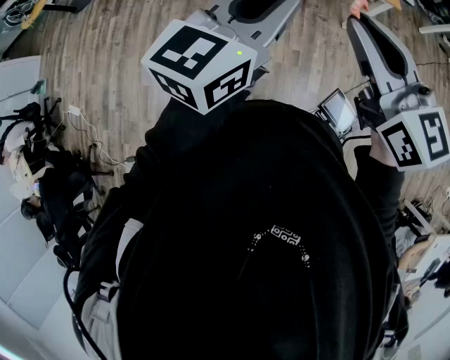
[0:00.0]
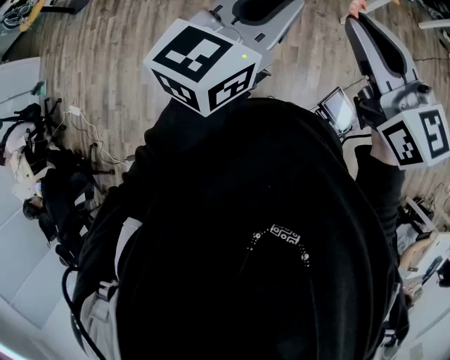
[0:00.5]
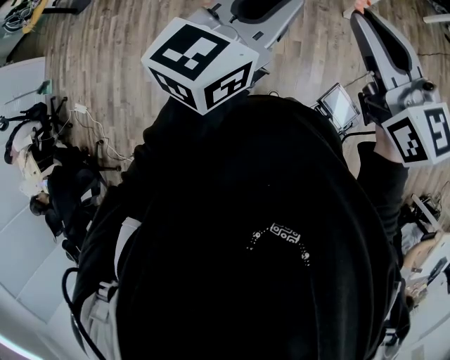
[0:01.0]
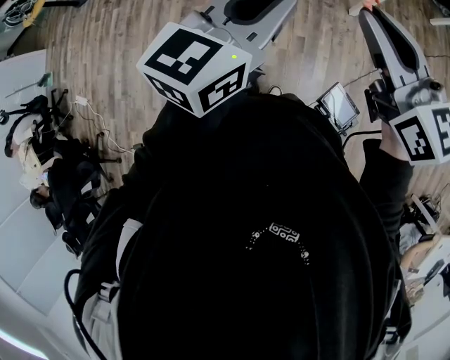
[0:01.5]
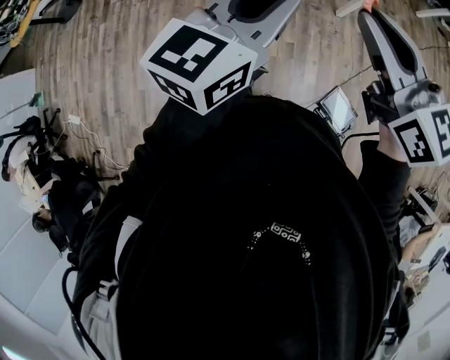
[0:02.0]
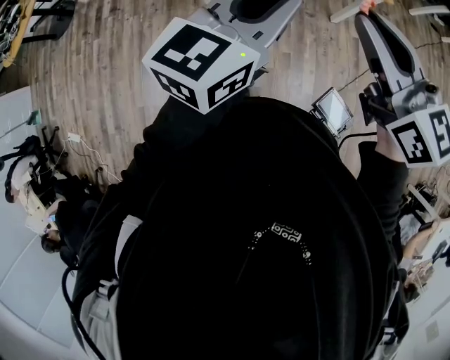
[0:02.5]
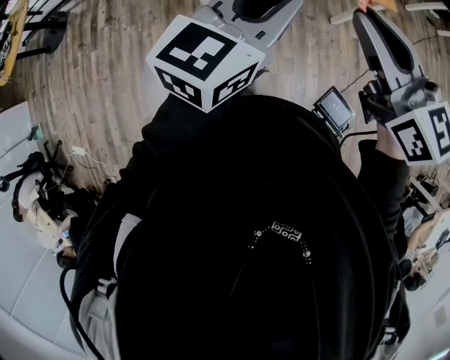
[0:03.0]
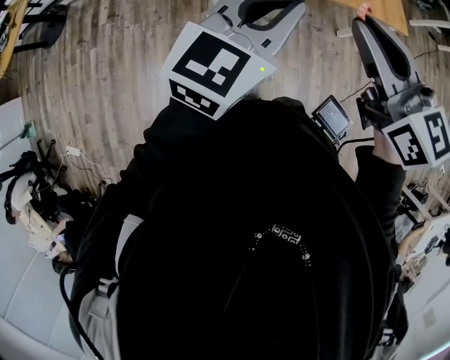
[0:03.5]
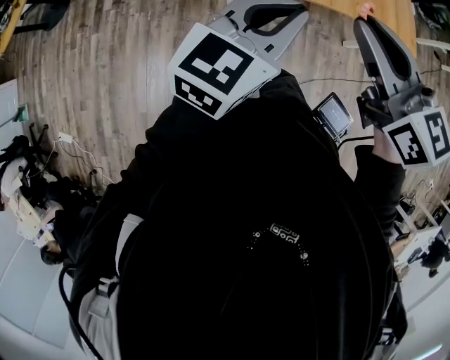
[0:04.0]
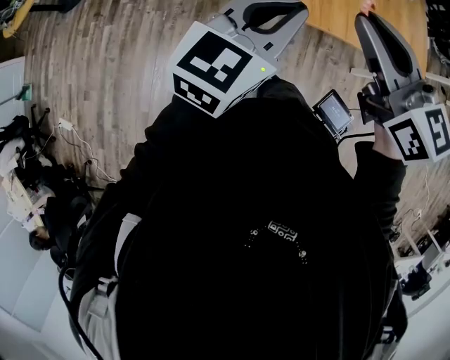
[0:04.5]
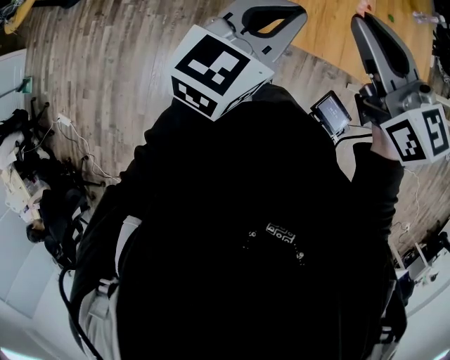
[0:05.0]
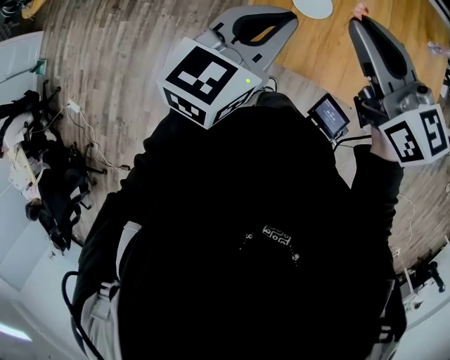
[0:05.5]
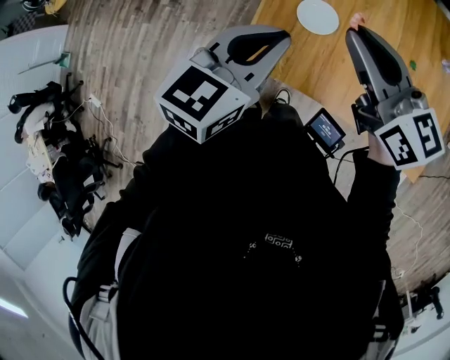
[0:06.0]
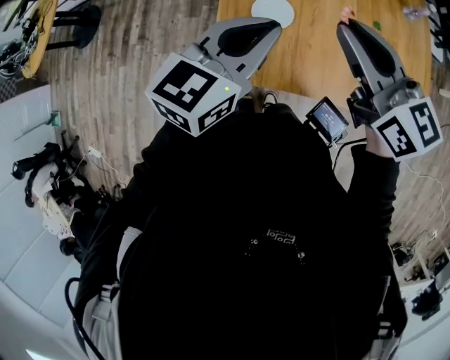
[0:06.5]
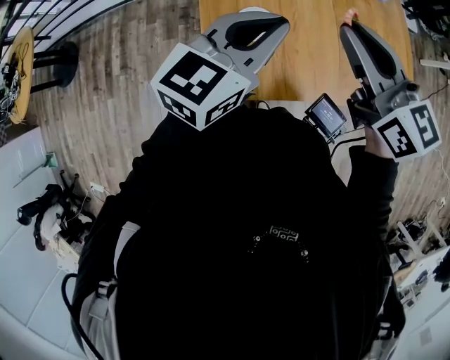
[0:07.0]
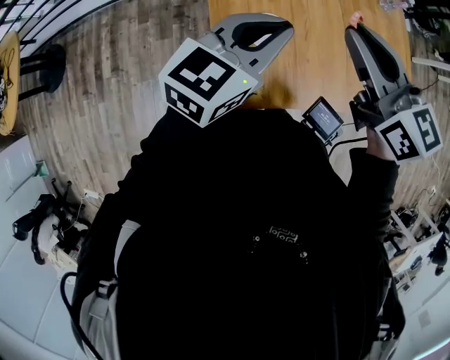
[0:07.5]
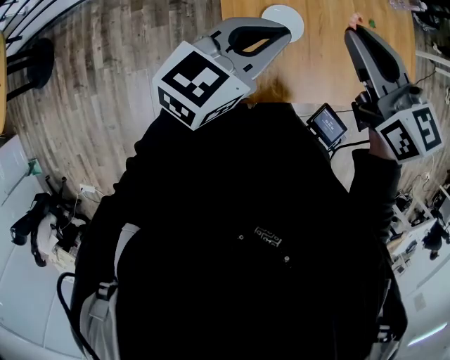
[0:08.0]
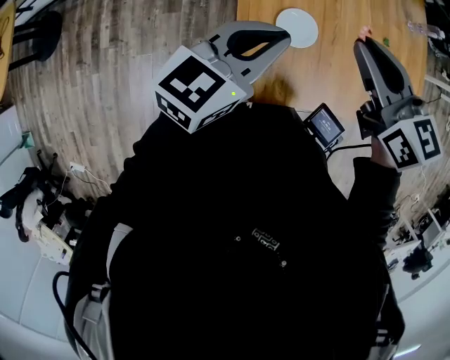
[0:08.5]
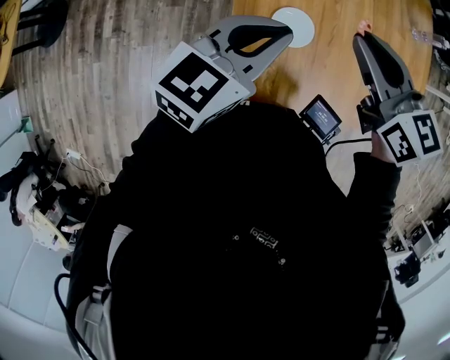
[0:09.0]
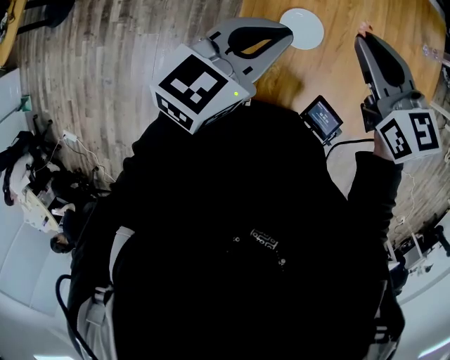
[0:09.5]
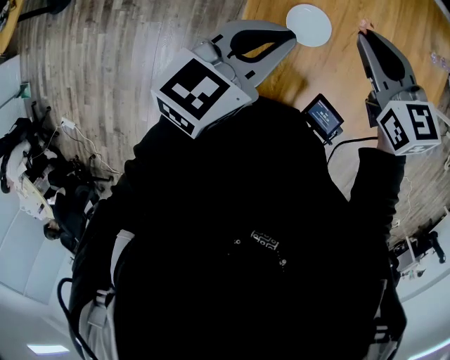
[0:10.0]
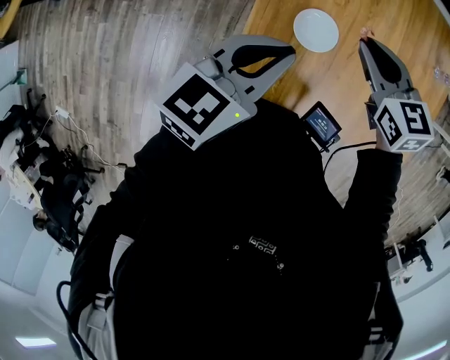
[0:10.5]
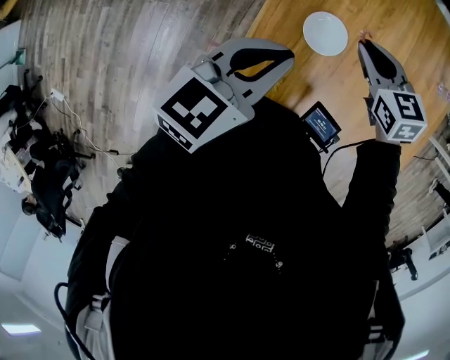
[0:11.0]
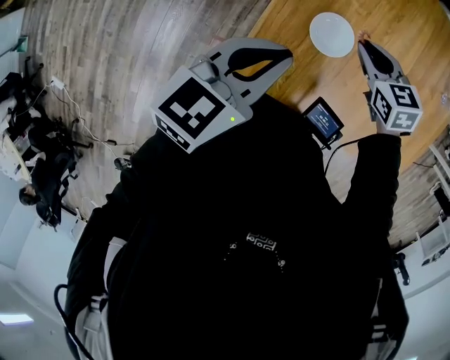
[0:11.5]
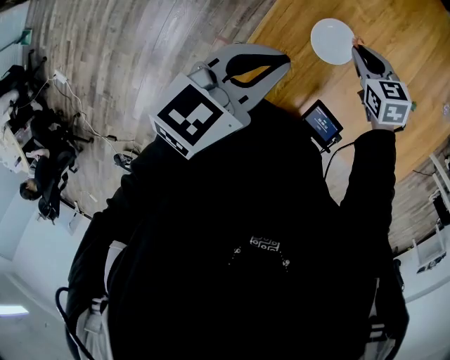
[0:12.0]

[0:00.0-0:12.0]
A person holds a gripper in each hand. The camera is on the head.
0:00.0 to 0:02.0: Both grippers travel together forward, about 5 cm.
0:02.0 to 0:04.0: The left gripper is displaced forward and to the left by roughly 30 cm. Meanwhile the right gripper is displaced to the left and forward by some 30 cm.
0:04.0 to 0:06.0: Both grippers move forward, roughly 30 cm. The left gripper changes its angle by roughly 20 degrees; the right gripper swivels about 20 degrees.
0:06.0 to 0:08.0: The left gripper moves roughly 10 cm, and turns by about 30 degrees; the right gripper ends up roughly 10 cm from where it was, and swivels approximately 30 degrees.
0:08.0 to 0:10.0: The right gripper goes some 10 cm downward, and rotates about 20 degrees.
0:10.0 to 0:12.0: The right gripper shifts some 20 cm downward, and rotates approximately 20 degrees, while the left gripper changes place by about 5 cm.

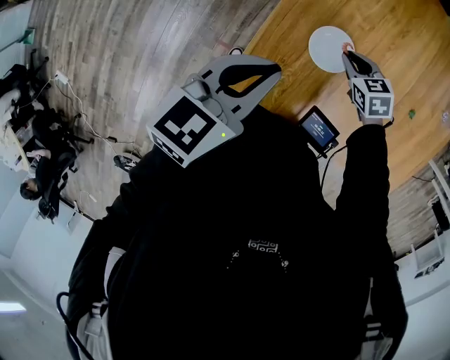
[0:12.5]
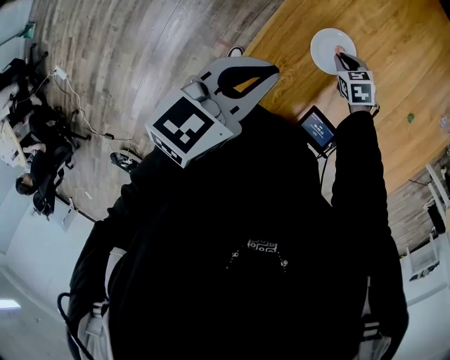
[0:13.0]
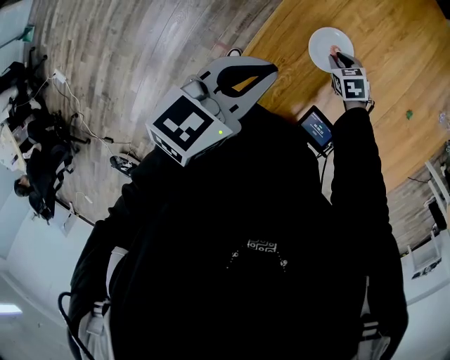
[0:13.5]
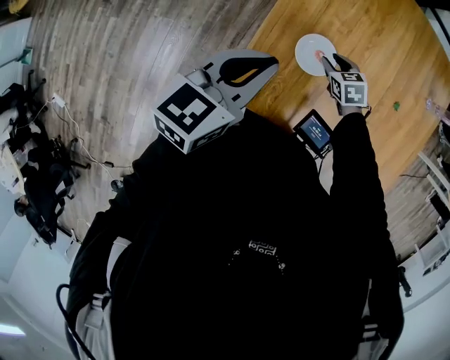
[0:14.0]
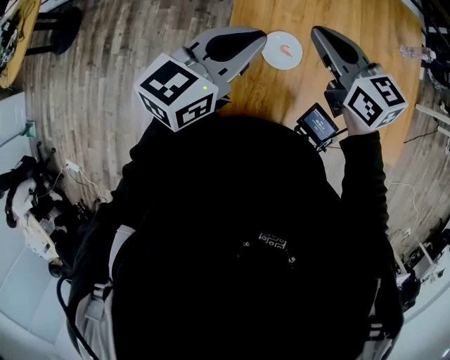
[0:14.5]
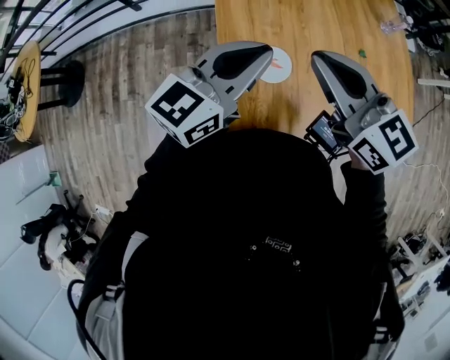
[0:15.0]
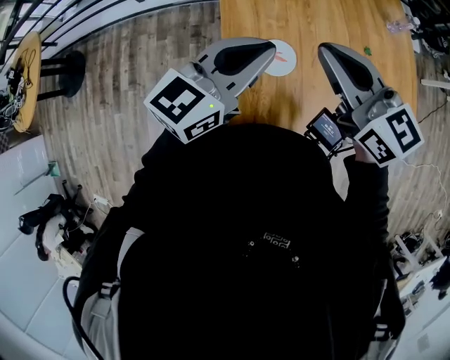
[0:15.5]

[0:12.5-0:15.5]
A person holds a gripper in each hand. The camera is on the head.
0:12.5 to 0:14.0: The right gripper moves approximately 10 cm downward and comes back, and opens.
0:14.0 to 0:15.5: The left gripper heads upward, forward and to the right, covering about 10 cm, and rotates approximately 30 degrees, while the right gripper shifts approximately 35 cm upward, points its fingers approximately 50 degrees further upward, and closes.

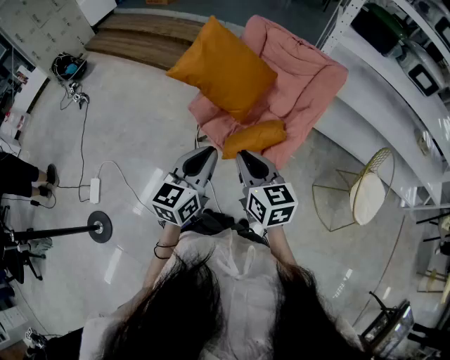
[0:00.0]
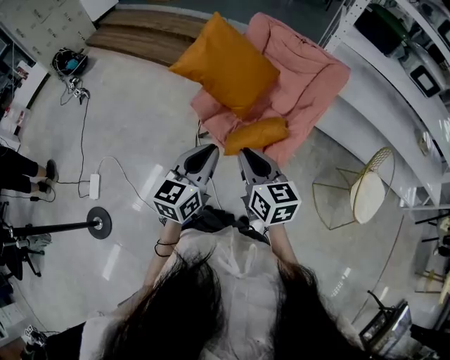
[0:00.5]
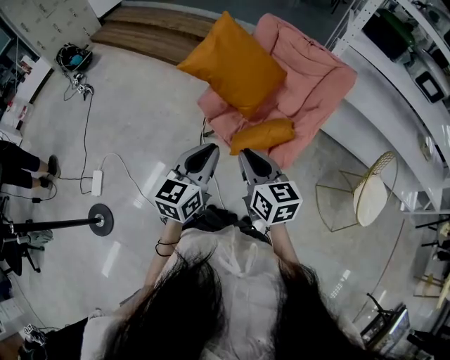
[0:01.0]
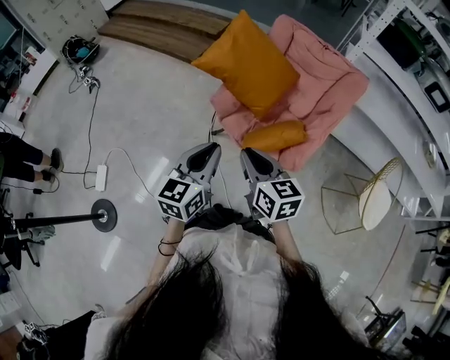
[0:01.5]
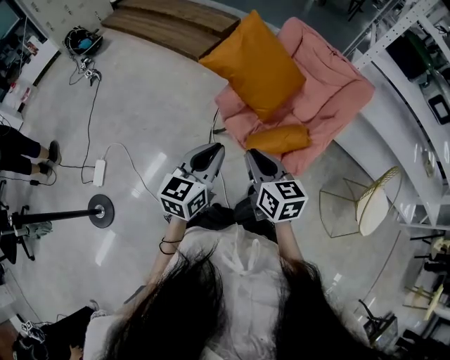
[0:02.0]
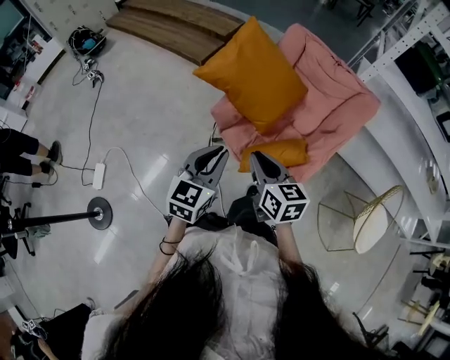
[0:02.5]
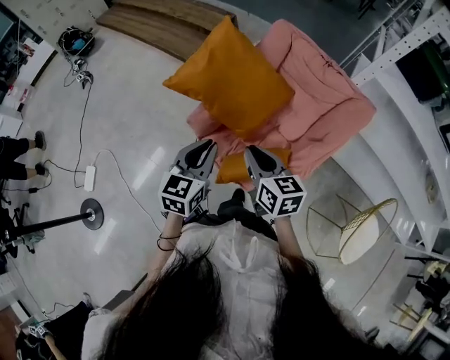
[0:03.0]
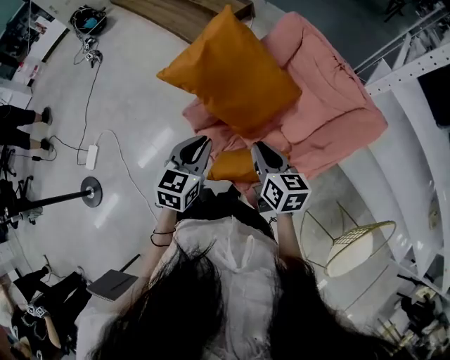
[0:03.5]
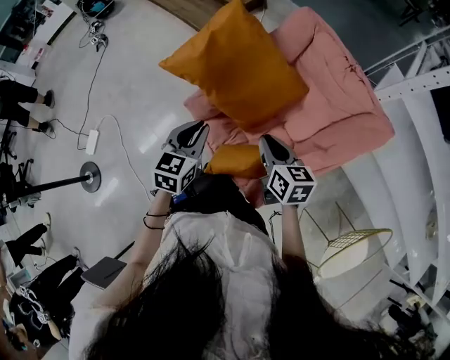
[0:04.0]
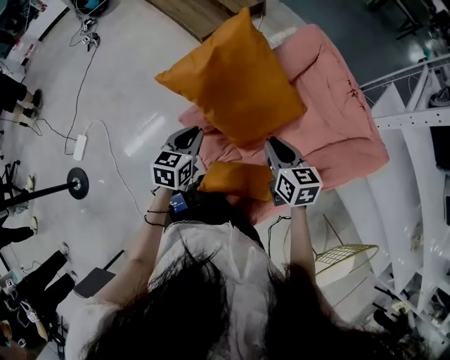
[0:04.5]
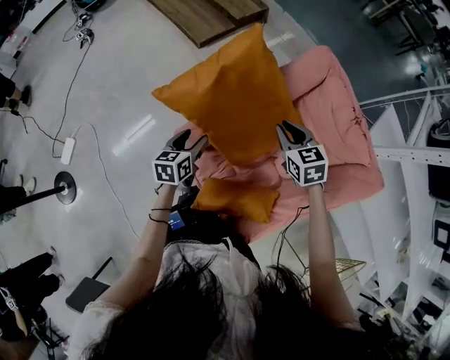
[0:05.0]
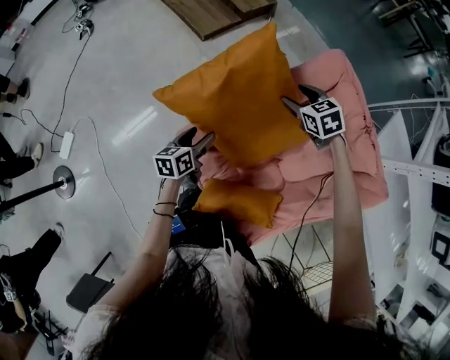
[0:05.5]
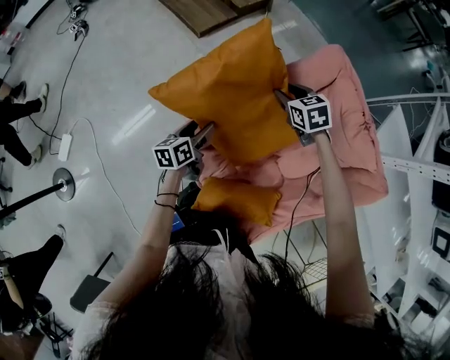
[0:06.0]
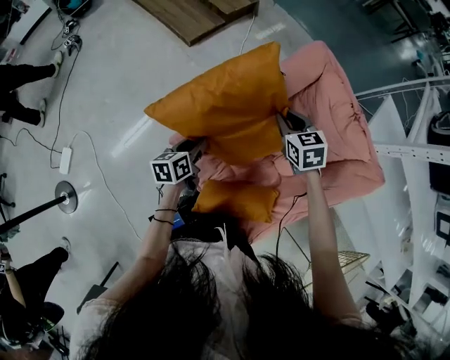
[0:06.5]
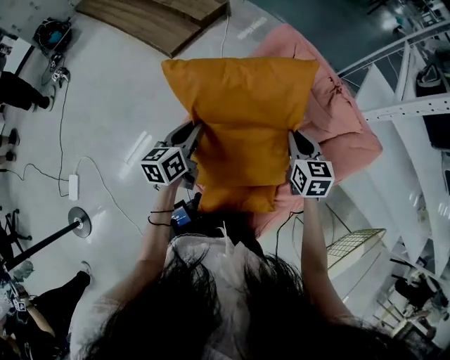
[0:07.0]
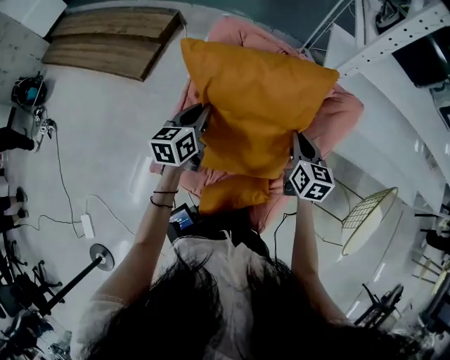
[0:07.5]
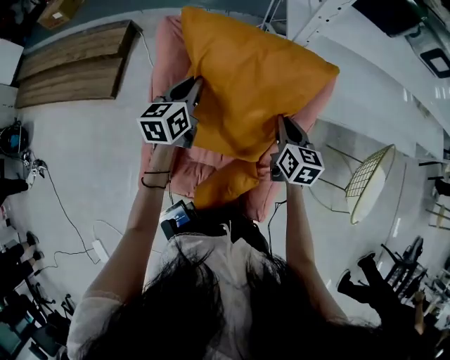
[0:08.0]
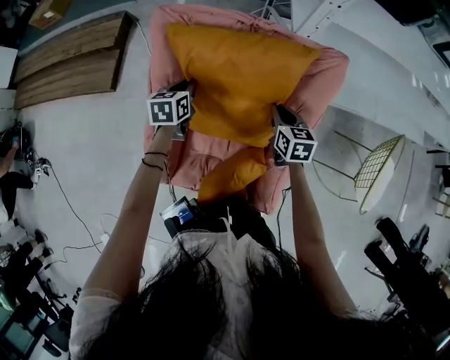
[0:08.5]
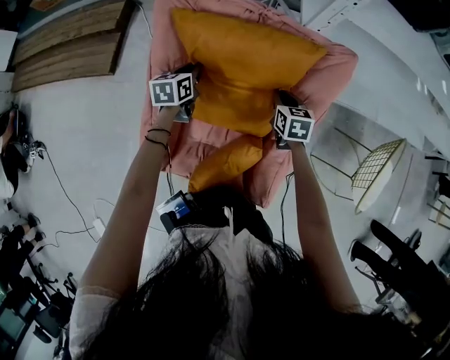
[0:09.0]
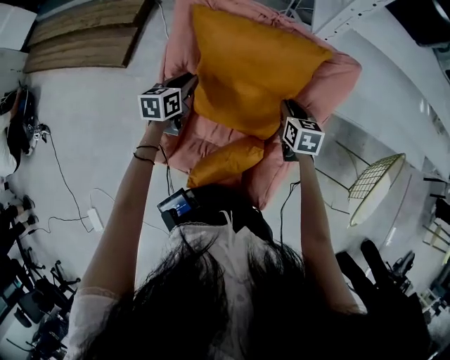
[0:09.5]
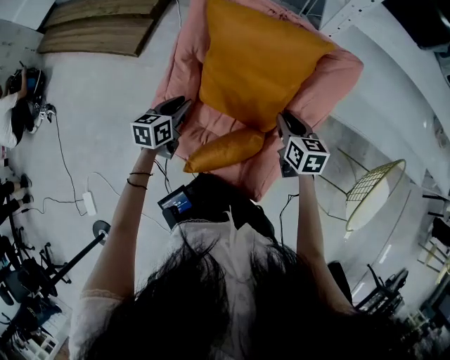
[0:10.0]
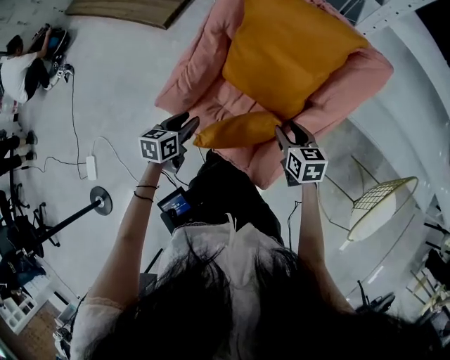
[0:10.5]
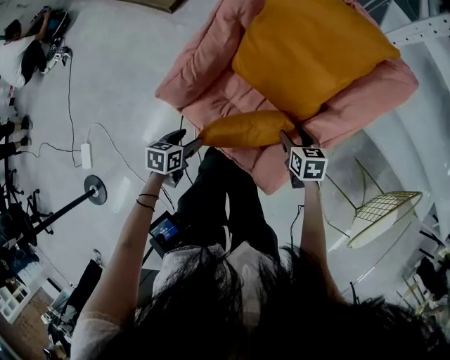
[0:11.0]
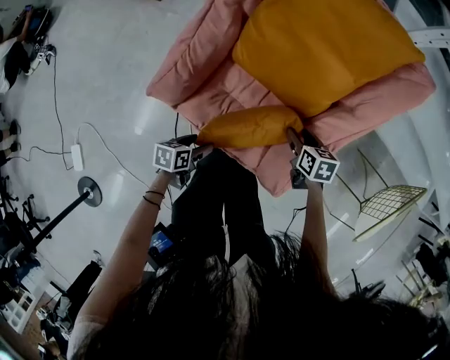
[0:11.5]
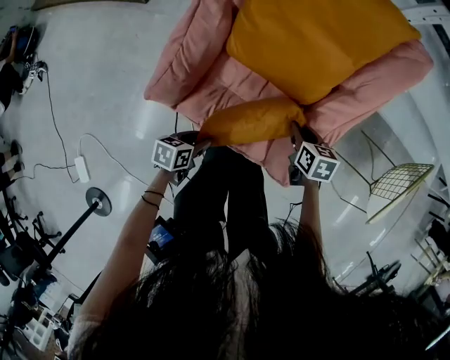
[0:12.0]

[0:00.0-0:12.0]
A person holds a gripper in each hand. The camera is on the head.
0:00.0 to 0:02.0: The grippers both shift to the left by some 10 cm.
0:02.0 to 0:04.0: The left gripper is displaced forward, to the right and downward by approximately 30 cm, and swivels roughly 30 degrees; the right gripper goes roughly 35 cm to the right and forward.
0:04.0 to 0:06.0: The left gripper goes roughly 30 cm downward and forward, twists approximately 40 degrees counterclockwise, seen from behind, and opens its fingers; the right gripper is displaced forward by about 35 cm, swivels about 40 degrees, and opens its fingers.
0:06.0 to 0:08.0: The left gripper shifts by roughly 40 cm, rotates some 50 degrees, and closes its fingers; the right gripper ends up some 40 cm from where it was, turns by approximately 70 degrees, and closes.
0:08.0 to 0:10.0: The right gripper moves backward and downward, about 10 cm, and changes its angle by some 20 degrees. The left gripper shifts roughly 20 cm backward and downward.
0:10.0 to 0:12.0: The left gripper moves backward and downward, approximately 30 cm, changes its angle by roughly 30 degrees, and opens and closes again, while the right gripper goes approximately 20 cm downward and backward, and opens, then closes again.
